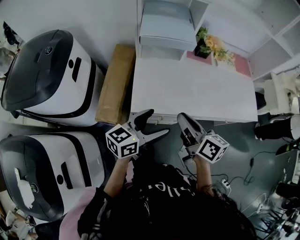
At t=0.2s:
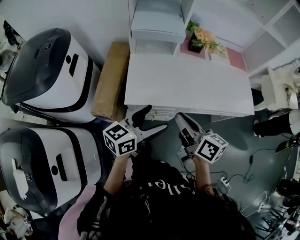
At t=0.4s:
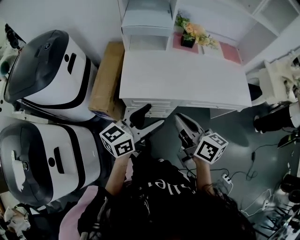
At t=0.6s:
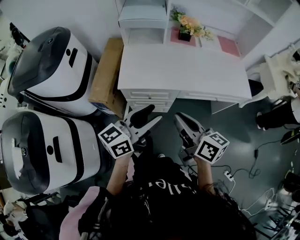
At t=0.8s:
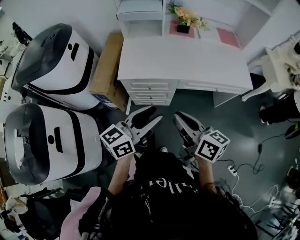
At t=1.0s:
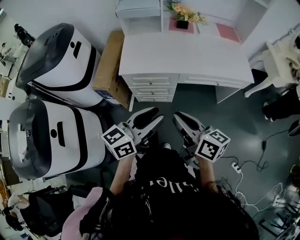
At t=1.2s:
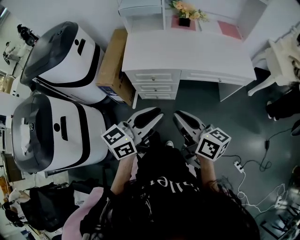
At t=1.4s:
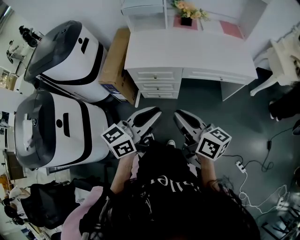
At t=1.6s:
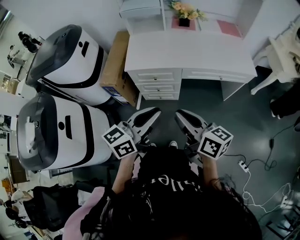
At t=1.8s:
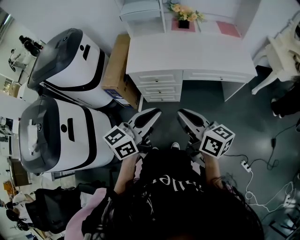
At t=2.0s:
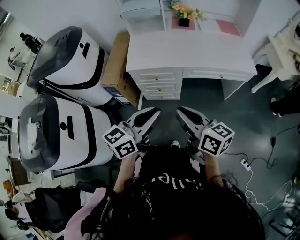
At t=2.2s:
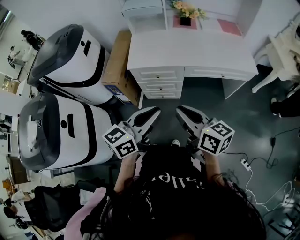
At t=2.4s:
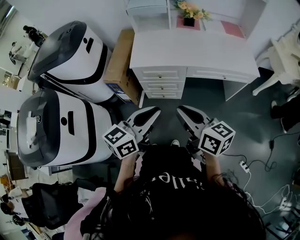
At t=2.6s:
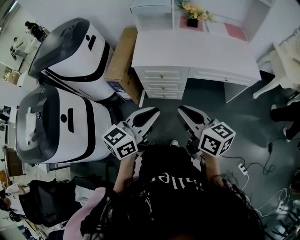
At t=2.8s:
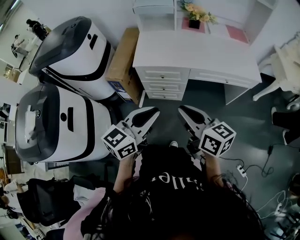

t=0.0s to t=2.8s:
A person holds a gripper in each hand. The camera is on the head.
t=0.0s to t=1.4s: Both grippers move backward and to the right, approximately 35 cm. The left gripper closes its fingers.
t=1.4s to t=2.8s: The left gripper shifts by about 5 cm.

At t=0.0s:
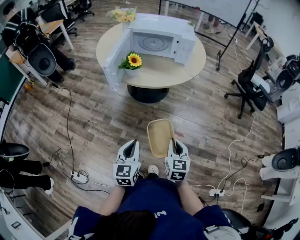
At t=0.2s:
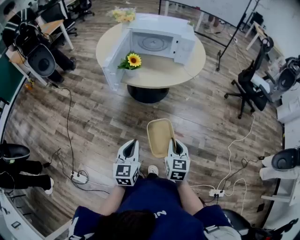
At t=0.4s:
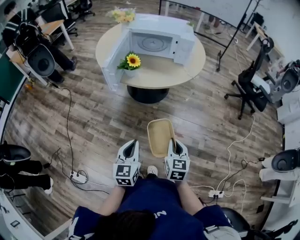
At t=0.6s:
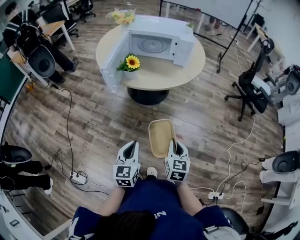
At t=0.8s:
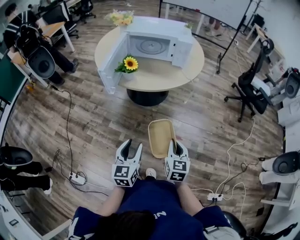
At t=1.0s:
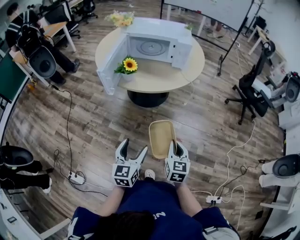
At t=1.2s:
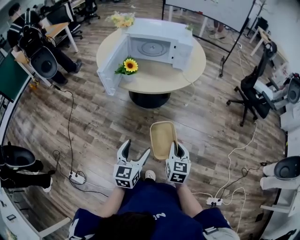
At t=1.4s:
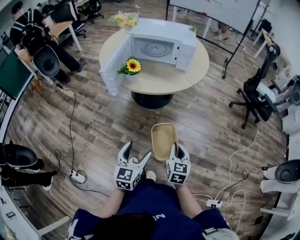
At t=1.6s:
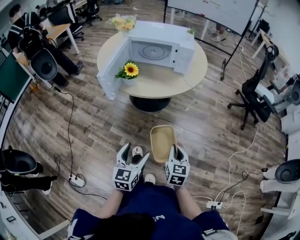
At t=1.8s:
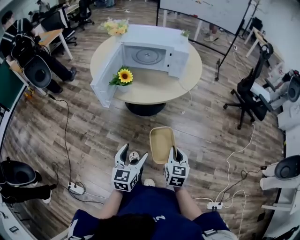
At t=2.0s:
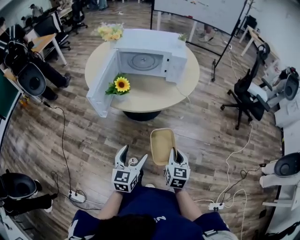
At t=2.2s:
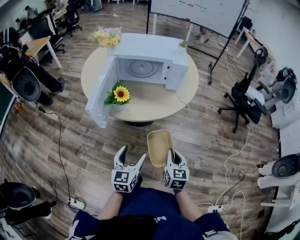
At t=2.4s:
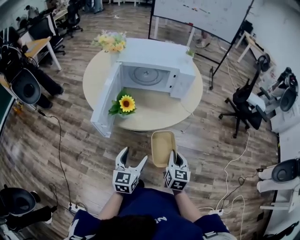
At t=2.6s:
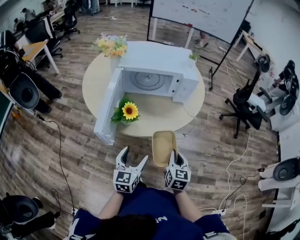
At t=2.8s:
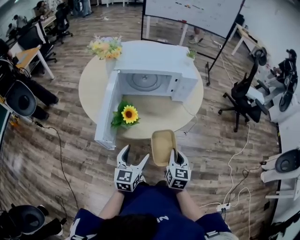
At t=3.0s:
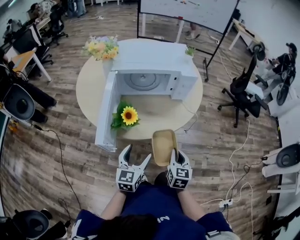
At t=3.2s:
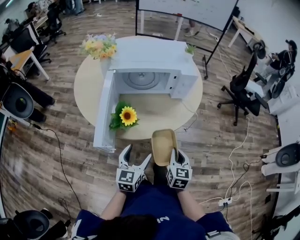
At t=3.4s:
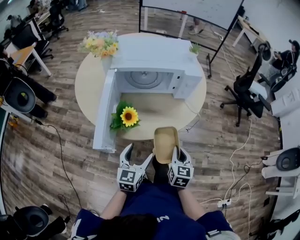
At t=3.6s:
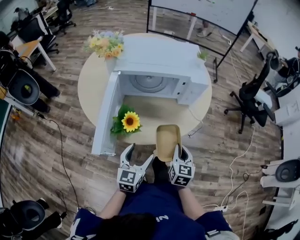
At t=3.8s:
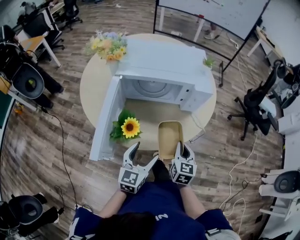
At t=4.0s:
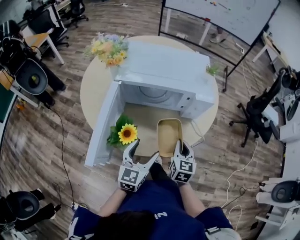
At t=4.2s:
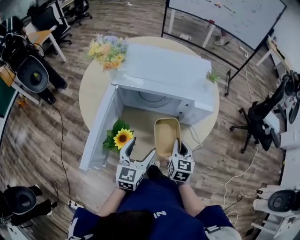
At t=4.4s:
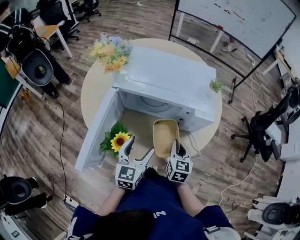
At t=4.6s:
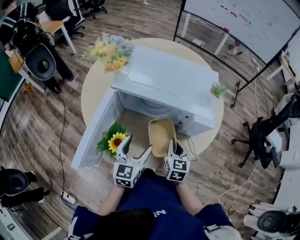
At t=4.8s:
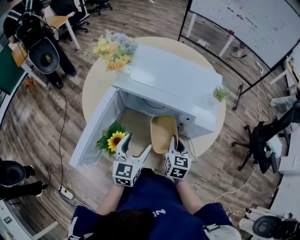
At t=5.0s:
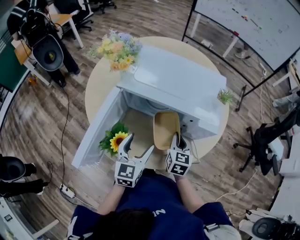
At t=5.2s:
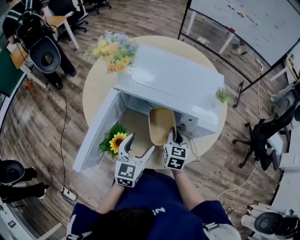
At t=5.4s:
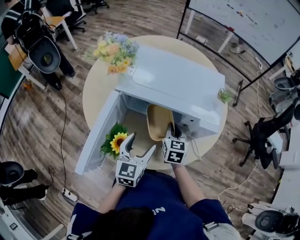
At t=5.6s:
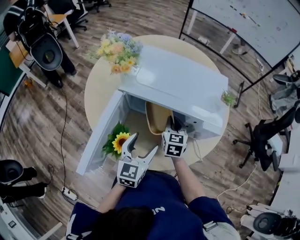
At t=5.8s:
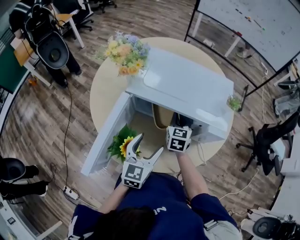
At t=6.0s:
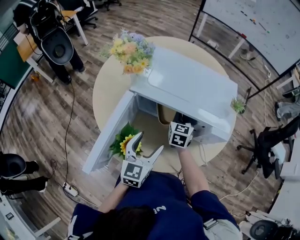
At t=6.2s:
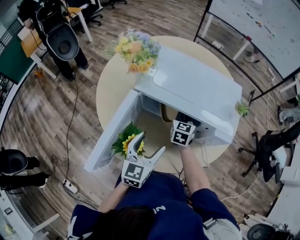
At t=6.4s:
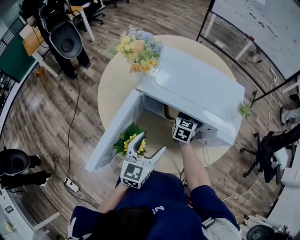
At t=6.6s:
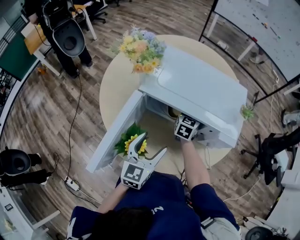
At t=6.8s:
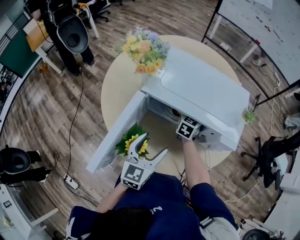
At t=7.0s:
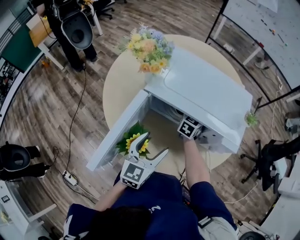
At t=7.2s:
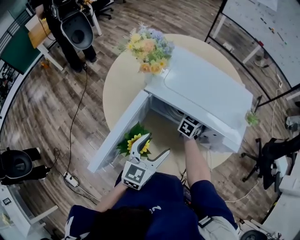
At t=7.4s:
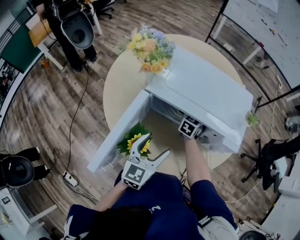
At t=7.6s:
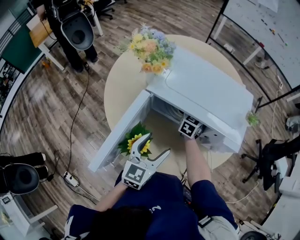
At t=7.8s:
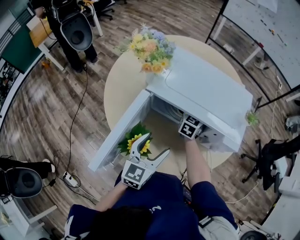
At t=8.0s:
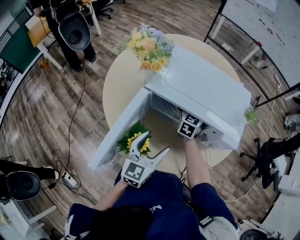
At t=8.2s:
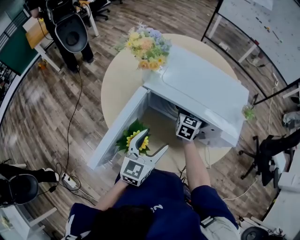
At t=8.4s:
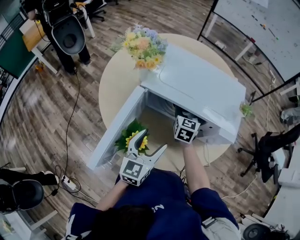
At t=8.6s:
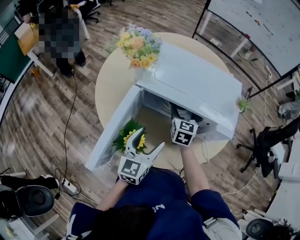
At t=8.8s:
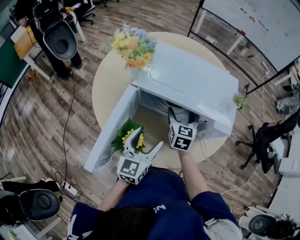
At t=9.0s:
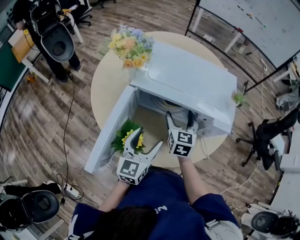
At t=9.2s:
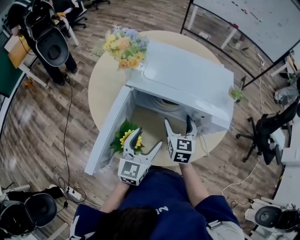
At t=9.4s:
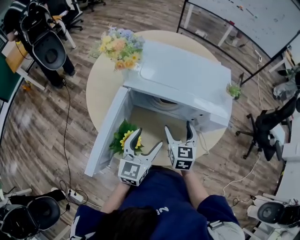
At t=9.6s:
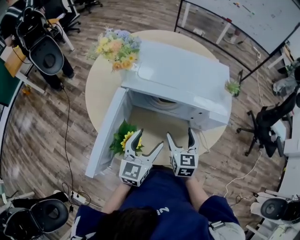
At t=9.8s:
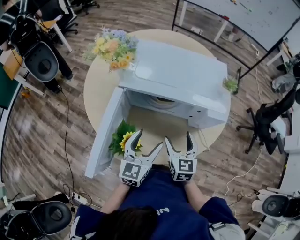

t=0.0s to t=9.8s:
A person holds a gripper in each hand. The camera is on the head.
t=0.0s to t=1.4s: The grippers both shift to the right by about 5 cm. The left gripper opens its fingers.
t=1.4s to t=2.8s: The grippers both shift forward and to the left by some 25 cm.
t=2.8s to t=4.2s: The grippers both shift forward by roughly 20 cm.
t=4.2s to t=5.6s: The right gripper shifts approximately 20 cm forward and to the left. The left gripper heads forward, covering approximately 5 cm.
t=5.6s to t=7.0s: The right gripper is displaced forward by roughly 10 cm.
t=7.0s to t=8.4s: The right gripper is displaced backward by some 5 cm, and opens up.
t=8.4s to t=9.8s: The right gripper heads backward, covering approximately 20 cm.

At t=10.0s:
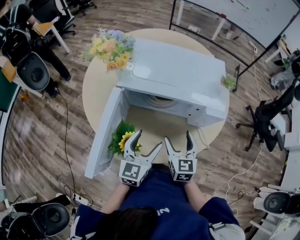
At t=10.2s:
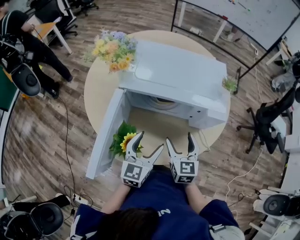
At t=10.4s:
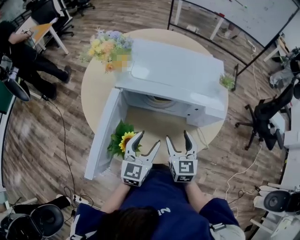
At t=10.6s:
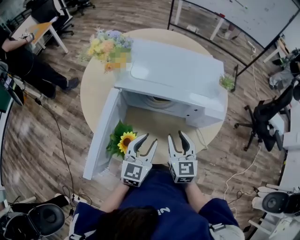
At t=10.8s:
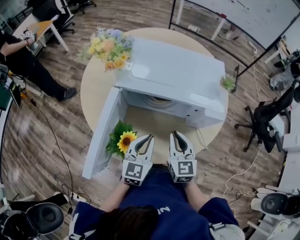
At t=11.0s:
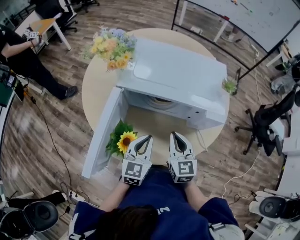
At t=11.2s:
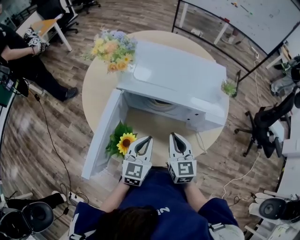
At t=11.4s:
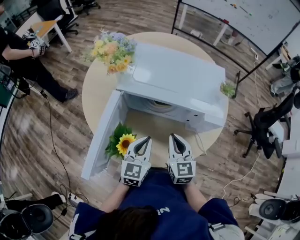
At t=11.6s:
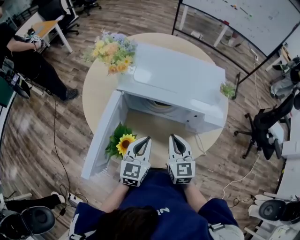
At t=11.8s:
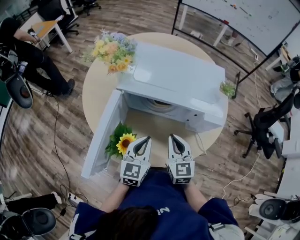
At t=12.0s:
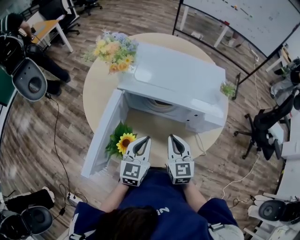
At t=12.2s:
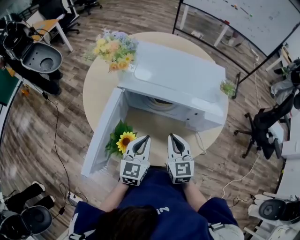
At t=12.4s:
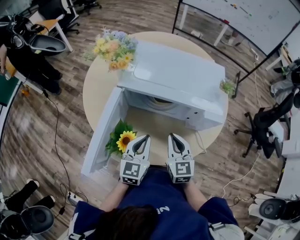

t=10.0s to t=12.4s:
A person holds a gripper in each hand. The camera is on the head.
t=10.0s to t=11.2s: The right gripper closes; the left gripper closes.
t=11.2s to t=12.4s: Neither gripper changes place.

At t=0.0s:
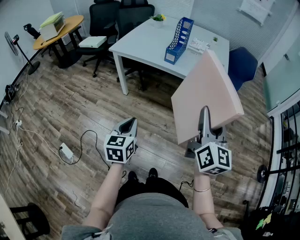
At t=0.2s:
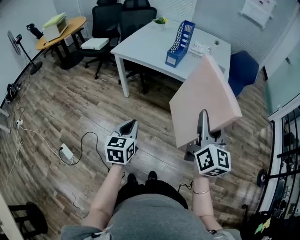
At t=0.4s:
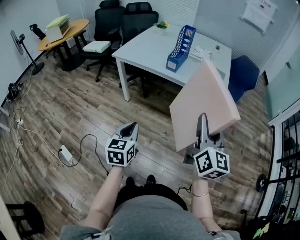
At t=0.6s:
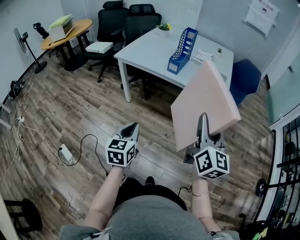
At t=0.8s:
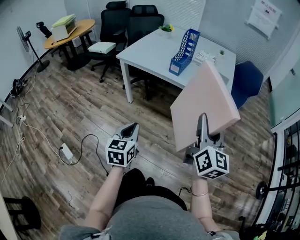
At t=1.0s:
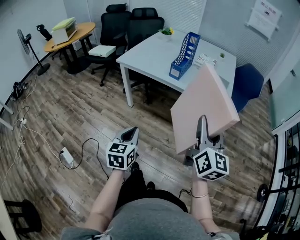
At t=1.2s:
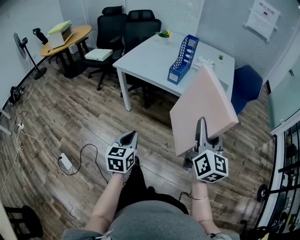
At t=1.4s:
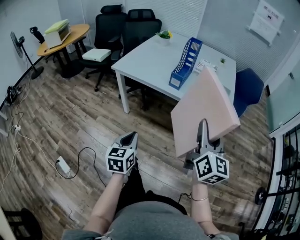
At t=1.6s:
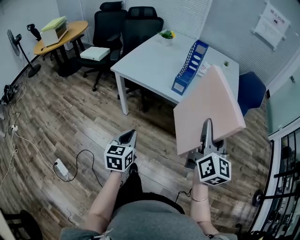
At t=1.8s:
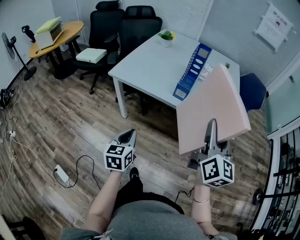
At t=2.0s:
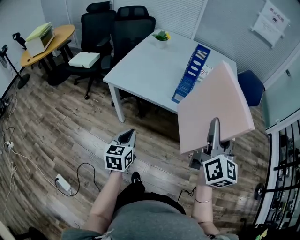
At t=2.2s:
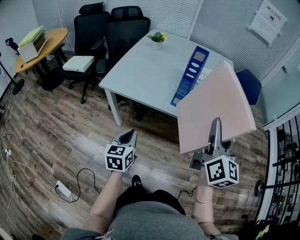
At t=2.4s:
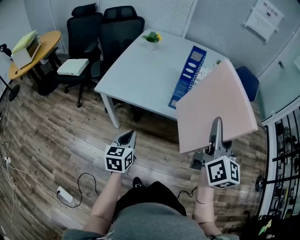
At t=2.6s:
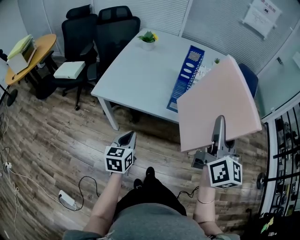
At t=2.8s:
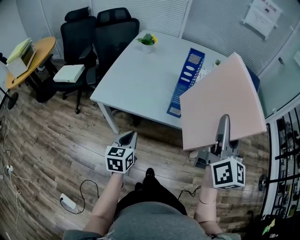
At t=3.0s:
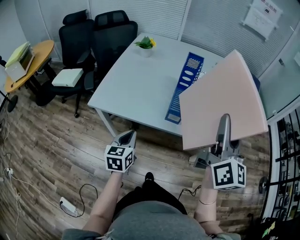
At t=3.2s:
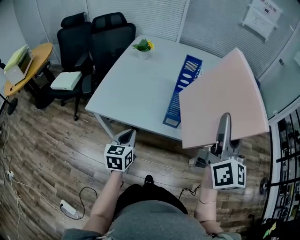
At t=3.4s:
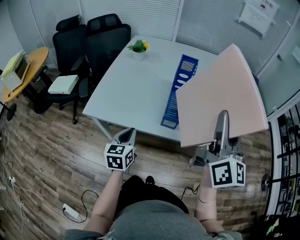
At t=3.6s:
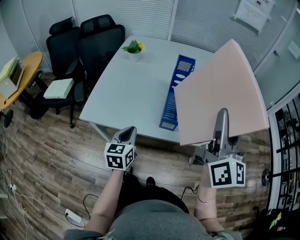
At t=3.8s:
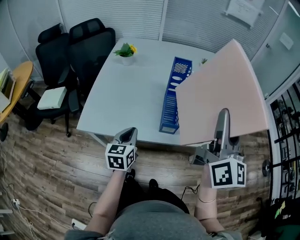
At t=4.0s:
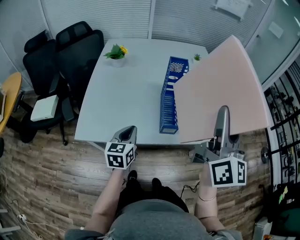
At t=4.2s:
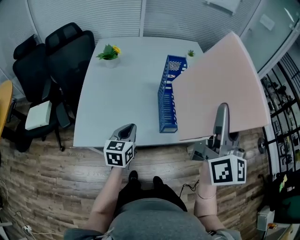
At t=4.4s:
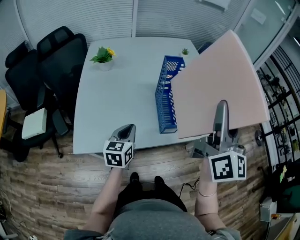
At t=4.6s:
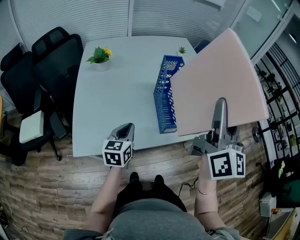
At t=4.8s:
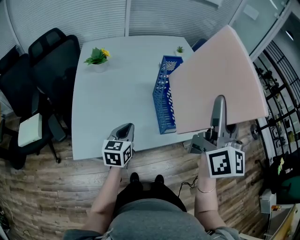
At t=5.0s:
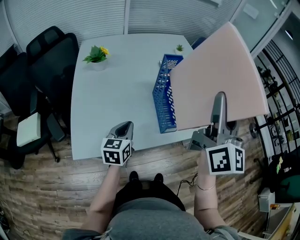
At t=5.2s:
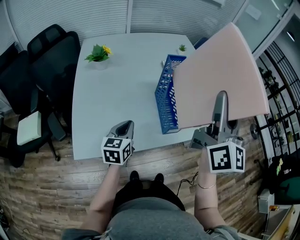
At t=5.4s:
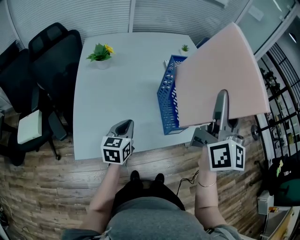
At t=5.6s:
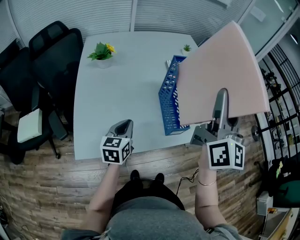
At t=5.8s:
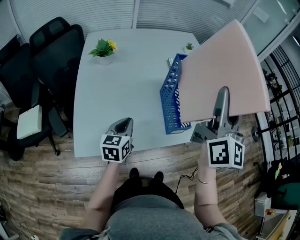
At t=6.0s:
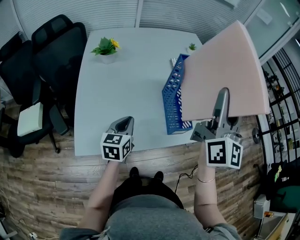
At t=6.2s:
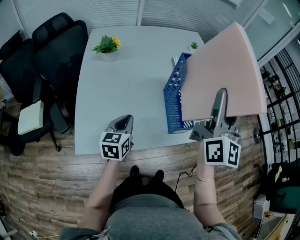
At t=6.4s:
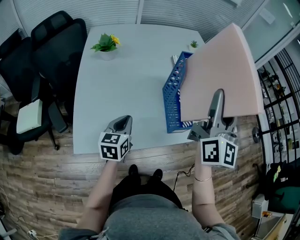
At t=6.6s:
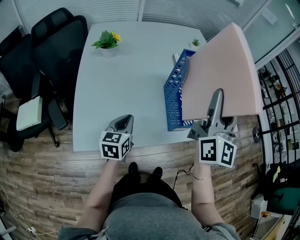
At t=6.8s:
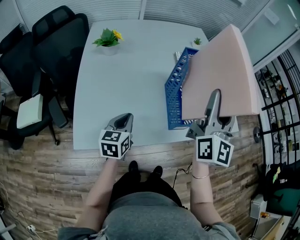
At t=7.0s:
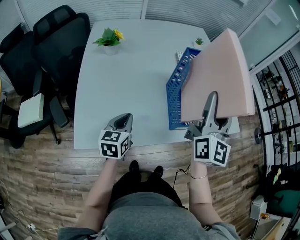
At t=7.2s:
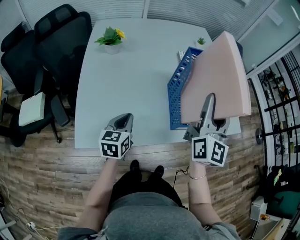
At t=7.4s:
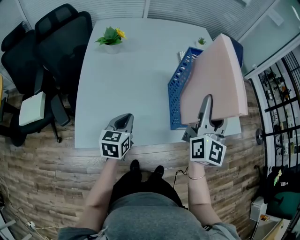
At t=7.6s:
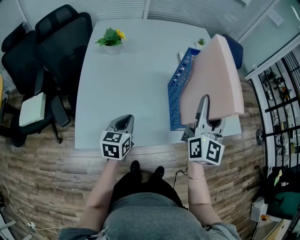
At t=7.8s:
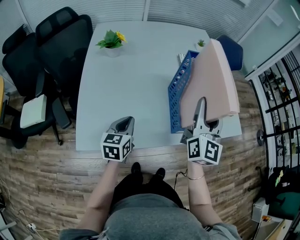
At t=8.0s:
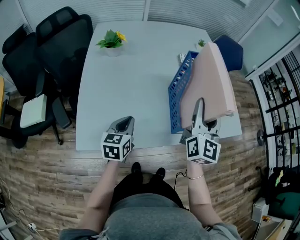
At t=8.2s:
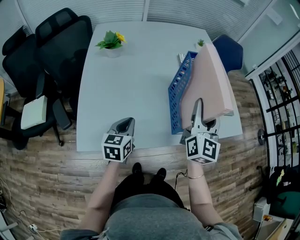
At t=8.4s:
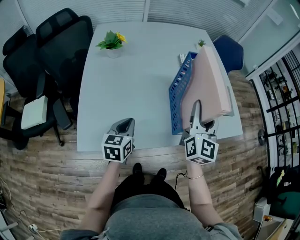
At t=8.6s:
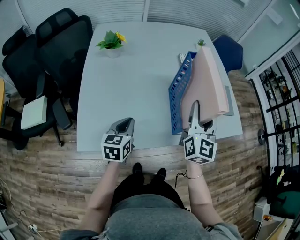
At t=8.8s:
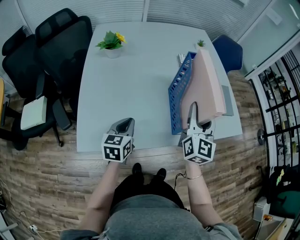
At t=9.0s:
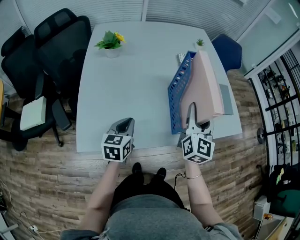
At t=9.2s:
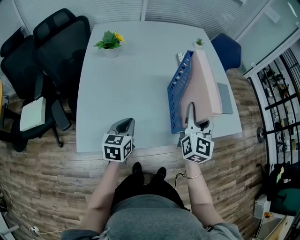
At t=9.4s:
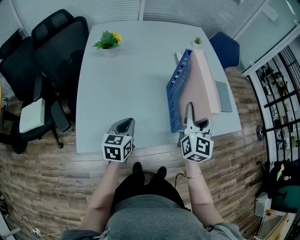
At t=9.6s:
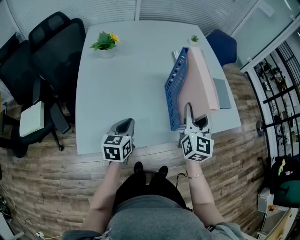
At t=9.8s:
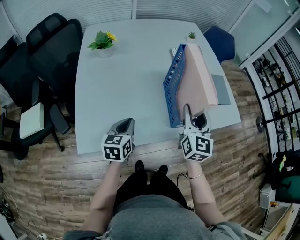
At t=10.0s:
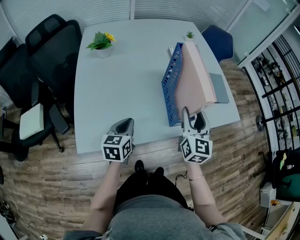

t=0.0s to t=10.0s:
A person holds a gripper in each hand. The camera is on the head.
t=0.0s to t=1.4s: The two grippers go about 10 cm forward.
t=1.4s to t=2.8s: The right gripper moves forward and upward, approximately 20 cm. Meanwhile the left gripper shifts some 30 cm forward and to the left.
t=2.8s to t=4.2s: The right gripper shifts approximately 10 cm forward and to the left. Meanwhile the left gripper moves forward, roughly 20 cm, and rotates some 20 degrees.
t=4.2s to t=5.8s: The left gripper is displaced to the left by about 5 cm. Meanwhile the right gripper travels to the left and forward by some 10 cm.
t=5.8s to t=7.2s: The right gripper heads downward, covering some 10 cm.
t=7.2s to t=8.6s: The right gripper moves downward, approximately 10 cm.
t=8.6s to t=10.0s: The right gripper is displaced downward by about 5 cm.
